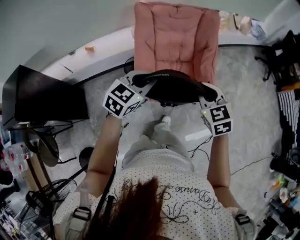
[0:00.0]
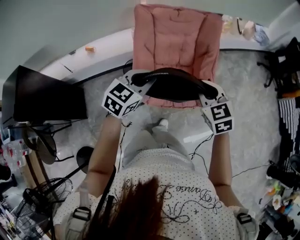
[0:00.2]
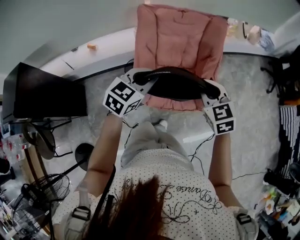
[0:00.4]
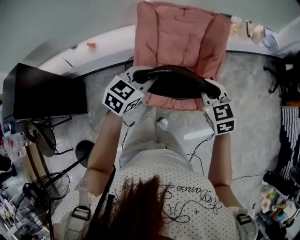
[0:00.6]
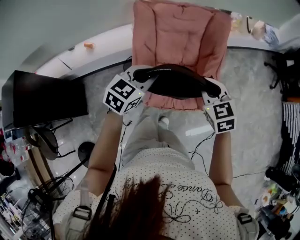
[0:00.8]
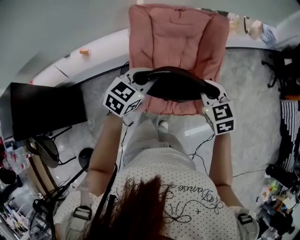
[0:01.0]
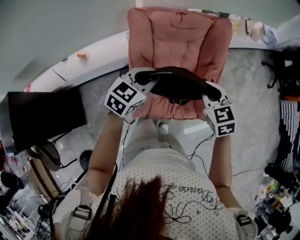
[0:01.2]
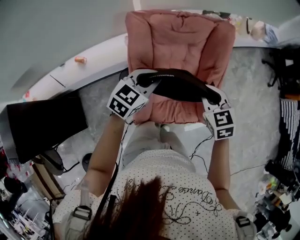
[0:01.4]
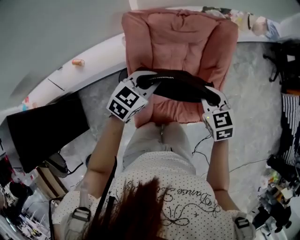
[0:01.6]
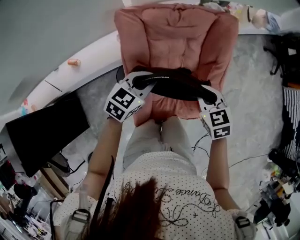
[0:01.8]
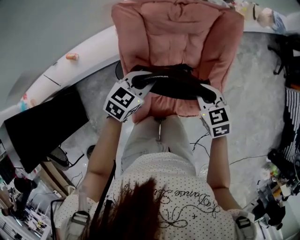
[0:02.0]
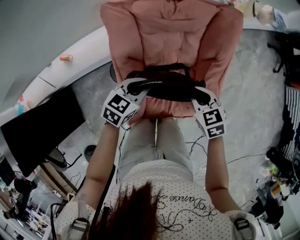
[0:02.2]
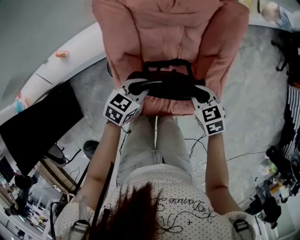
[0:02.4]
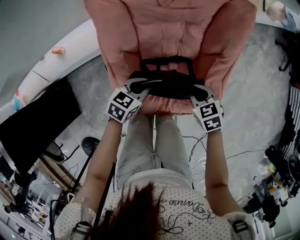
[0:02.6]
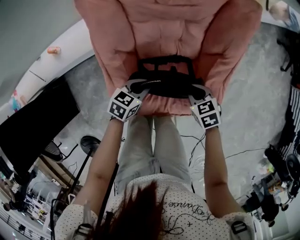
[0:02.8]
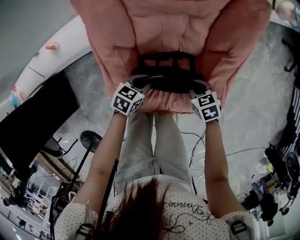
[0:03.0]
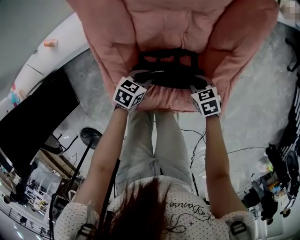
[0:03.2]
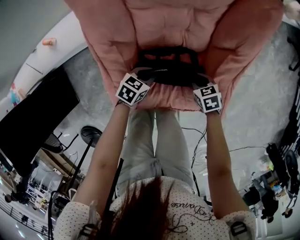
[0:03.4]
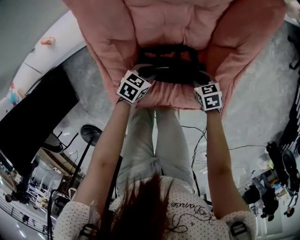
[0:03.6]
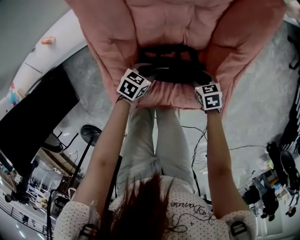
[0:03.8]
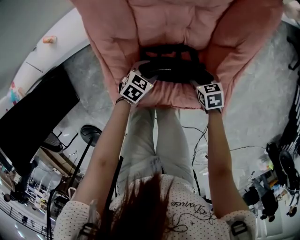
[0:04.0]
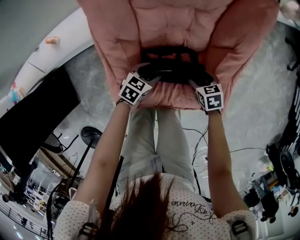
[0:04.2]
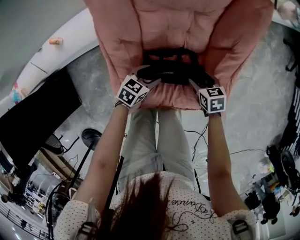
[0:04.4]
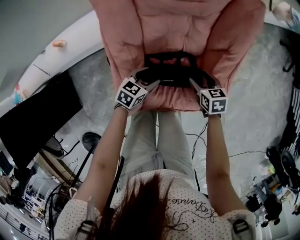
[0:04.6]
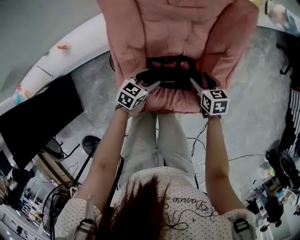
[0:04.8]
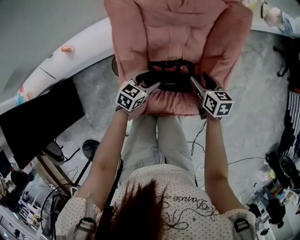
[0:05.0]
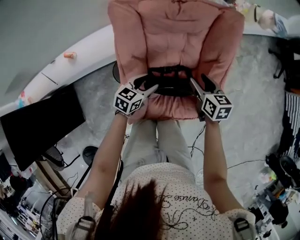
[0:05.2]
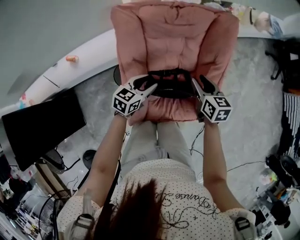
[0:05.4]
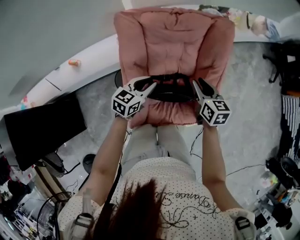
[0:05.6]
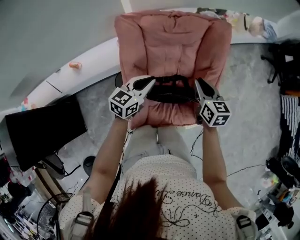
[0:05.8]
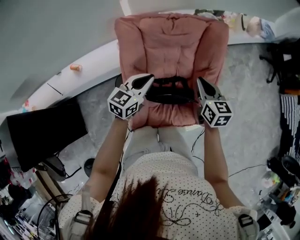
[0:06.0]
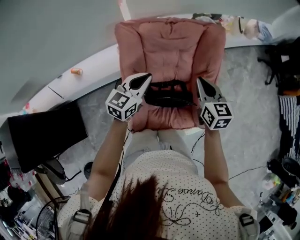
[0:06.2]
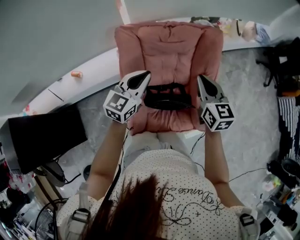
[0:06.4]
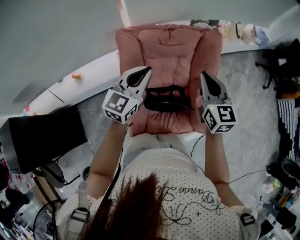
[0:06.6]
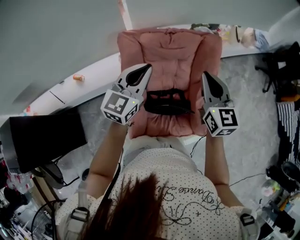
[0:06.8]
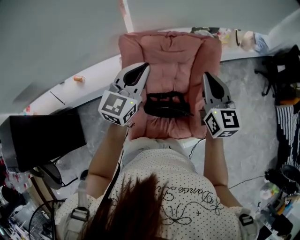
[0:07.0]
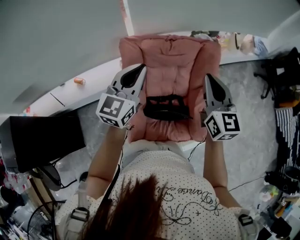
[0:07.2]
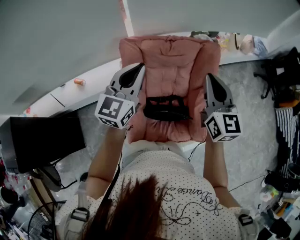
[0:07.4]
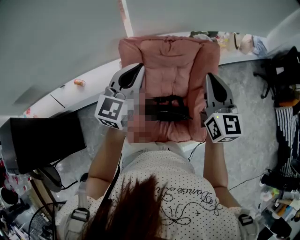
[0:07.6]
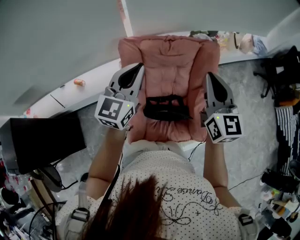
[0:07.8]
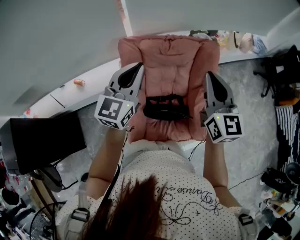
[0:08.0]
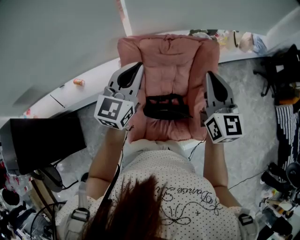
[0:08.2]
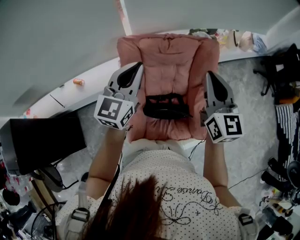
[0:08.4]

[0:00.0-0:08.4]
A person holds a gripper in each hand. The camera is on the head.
0:00.0 to 0:01.4: The grippers both shift forward by about 25 cm.
0:01.4 to 0:02.8: The two grippers go some 30 cm downward. The left gripper changes its angle by some 30 degrees; the right gripper rotates approximately 30 degrees.
0:02.8 to 0:04.2: Both grippers move downward, some 5 cm. The right gripper opens up. The left gripper opens its fingers.
0:04.2 to 0:05.6: Both grippers travel together upward, approximately 25 cm. The left gripper rotates approximately 30 degrees, and closes its fingers. The right gripper points its fingers roughly 30 degrees further upward, and closes its fingers.
0:05.6 to 0:07.0: The grippers both shift upward by about 25 cm. The left gripper turns by some 30 degrees. The right gripper changes its angle by some 30 degrees, and closes its fingers.
0:07.0 to 0:08.4: There are only small adjustments of the grippers.

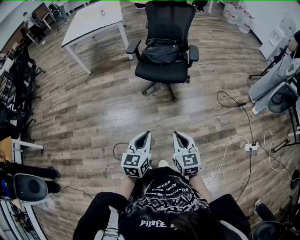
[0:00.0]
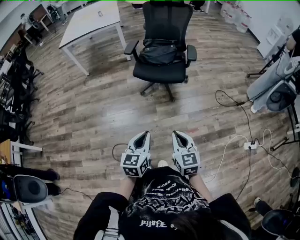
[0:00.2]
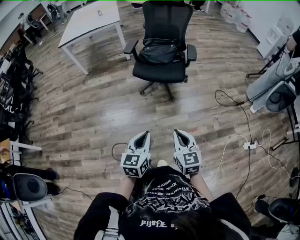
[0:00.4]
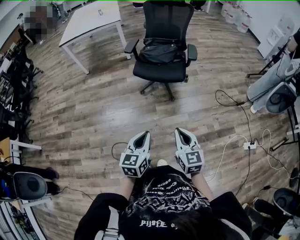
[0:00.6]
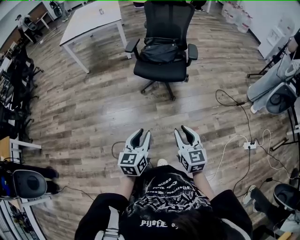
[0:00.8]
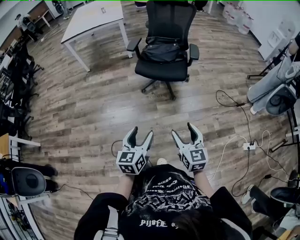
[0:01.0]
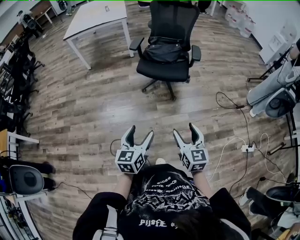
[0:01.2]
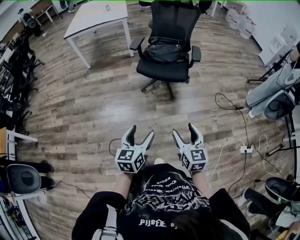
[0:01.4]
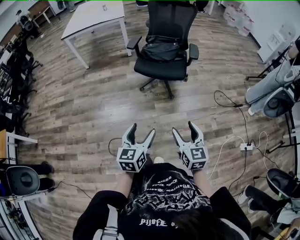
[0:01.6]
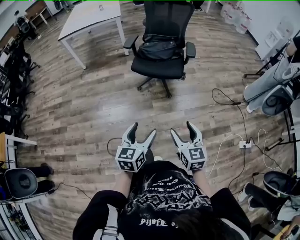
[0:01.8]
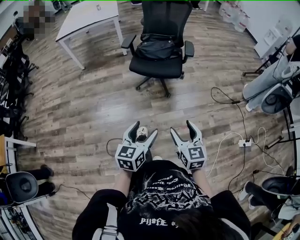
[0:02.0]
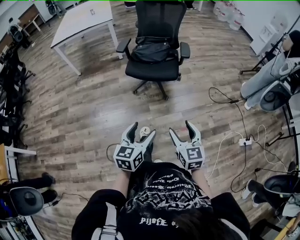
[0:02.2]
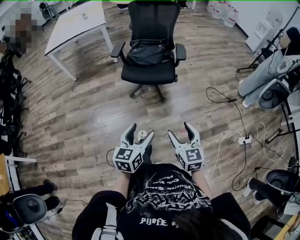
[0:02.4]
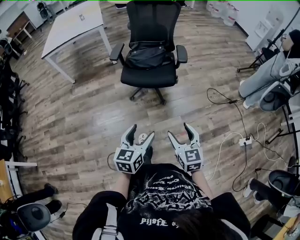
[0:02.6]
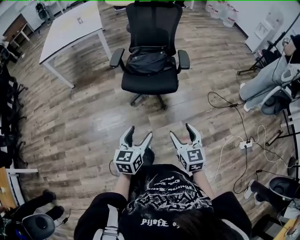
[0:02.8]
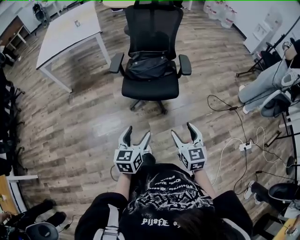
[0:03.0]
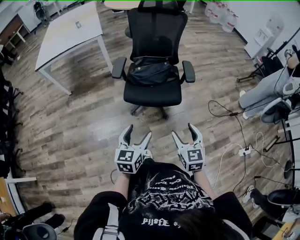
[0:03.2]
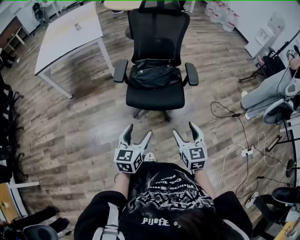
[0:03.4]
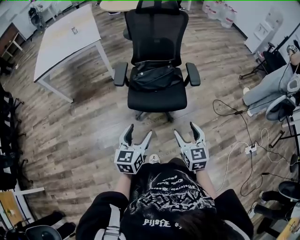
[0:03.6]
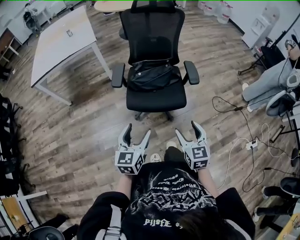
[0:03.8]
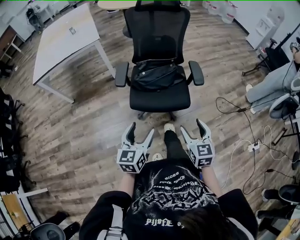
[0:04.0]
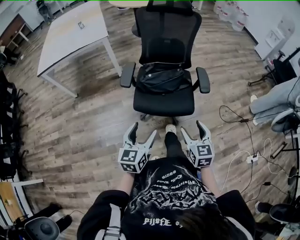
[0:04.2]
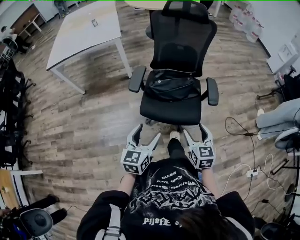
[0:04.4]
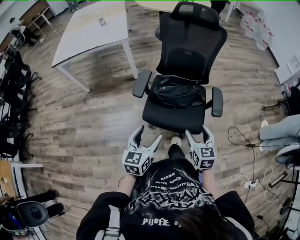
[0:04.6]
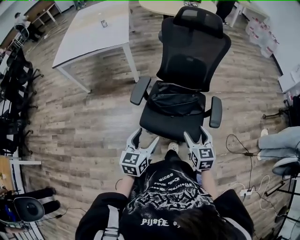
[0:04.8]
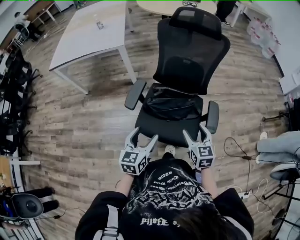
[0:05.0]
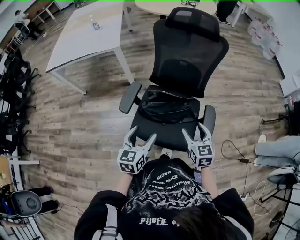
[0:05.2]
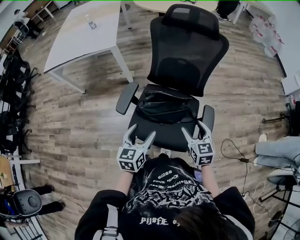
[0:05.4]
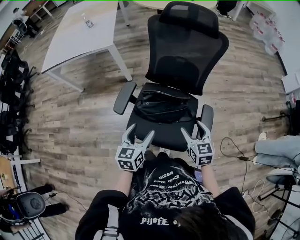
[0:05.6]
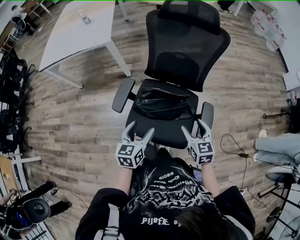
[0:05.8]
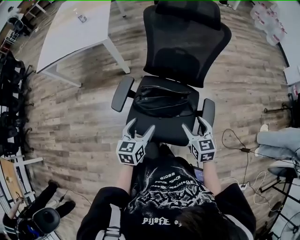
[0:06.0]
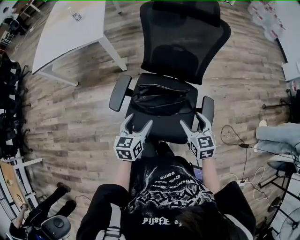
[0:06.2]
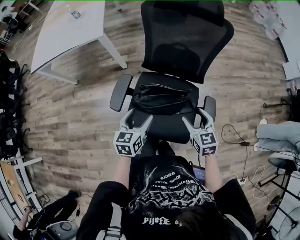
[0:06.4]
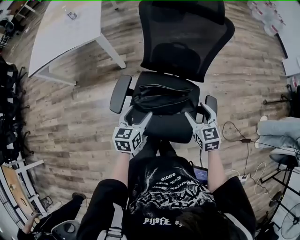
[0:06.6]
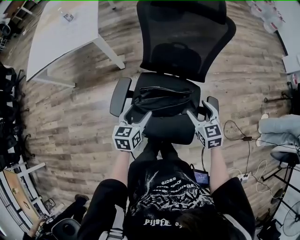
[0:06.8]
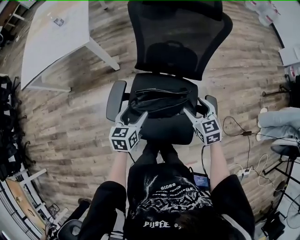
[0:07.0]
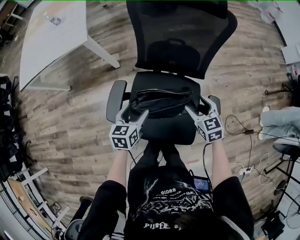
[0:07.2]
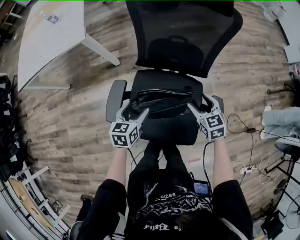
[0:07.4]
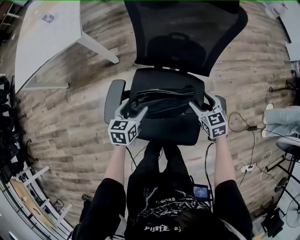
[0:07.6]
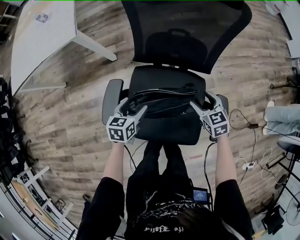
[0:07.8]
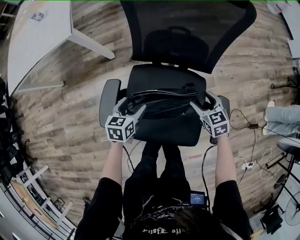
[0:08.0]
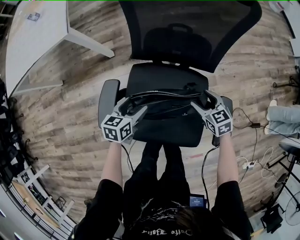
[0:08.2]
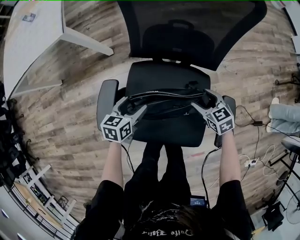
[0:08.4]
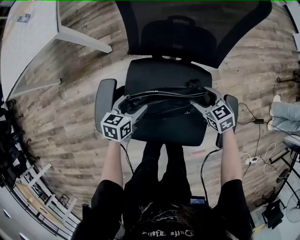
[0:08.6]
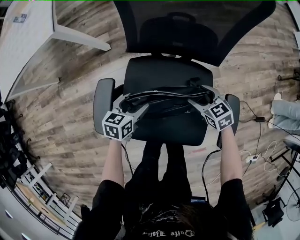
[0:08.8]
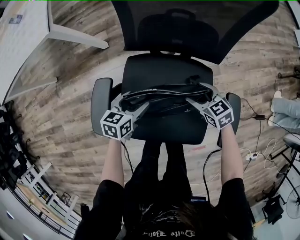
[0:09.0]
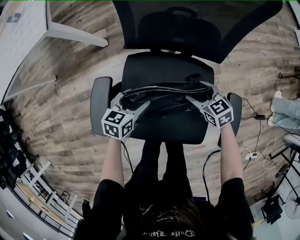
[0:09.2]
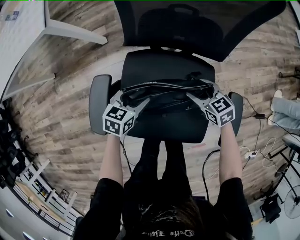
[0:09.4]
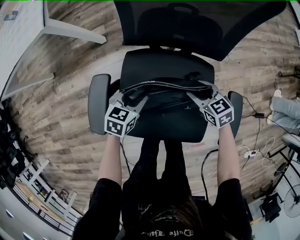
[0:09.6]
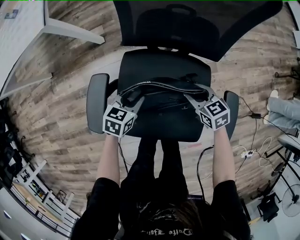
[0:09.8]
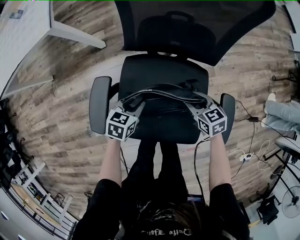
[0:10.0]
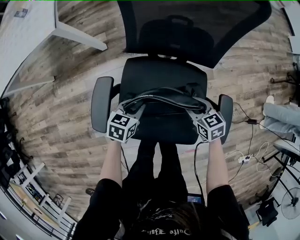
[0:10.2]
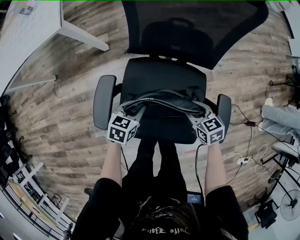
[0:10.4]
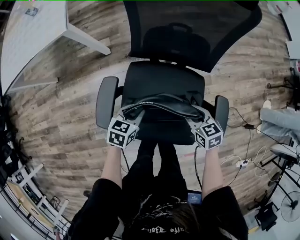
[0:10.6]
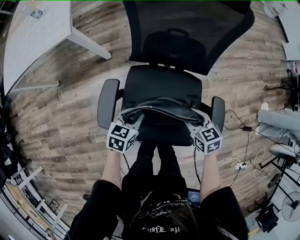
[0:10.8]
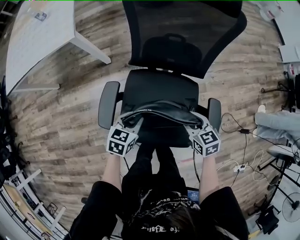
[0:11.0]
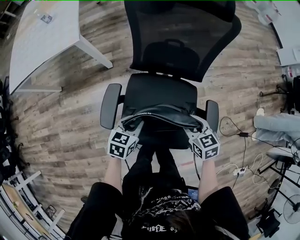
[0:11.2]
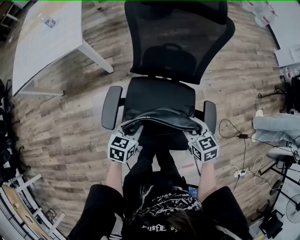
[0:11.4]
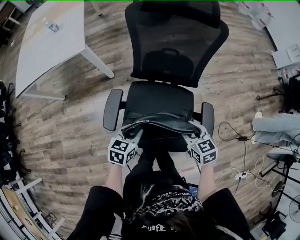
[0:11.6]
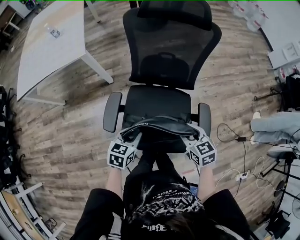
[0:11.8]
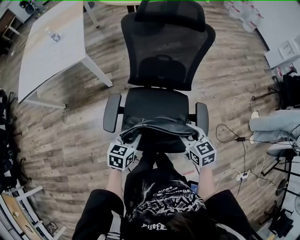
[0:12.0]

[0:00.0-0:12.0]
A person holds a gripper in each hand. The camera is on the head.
0:00.0 to 0:01.6: The right gripper opens. Meanwhile the left gripper opens.
0:01.6 to 0:03.0: The two grippers go some 25 cm forward.
0:03.0 to 0:04.4: The two grippers go some 25 cm forward.
0:04.4 to 0:06.0: Both grippers move forward and to the right, some 30 cm.
0:06.0 to 0:07.6: The grippers both shift forward and downward by approximately 25 cm.
0:07.6 to 0:09.0: Both grippers move downward, roughly 15 cm.
0:09.0 to 0:10.4: The right gripper heads upward and backward, covering approximately 10 cm, and closes up. The left gripper moves roughly 5 cm, and closes.
0:10.4 to 0:12.0: The grippers both shift upward and backward by approximately 25 cm.

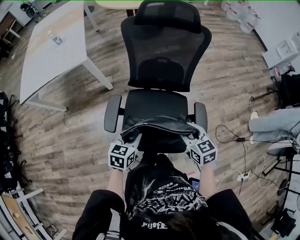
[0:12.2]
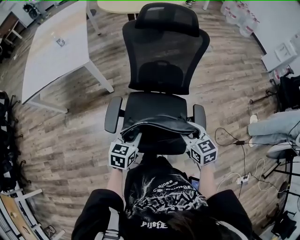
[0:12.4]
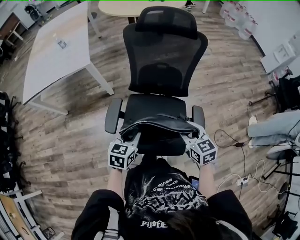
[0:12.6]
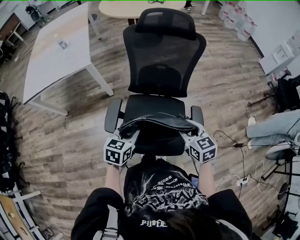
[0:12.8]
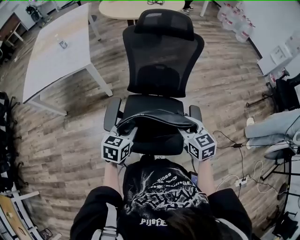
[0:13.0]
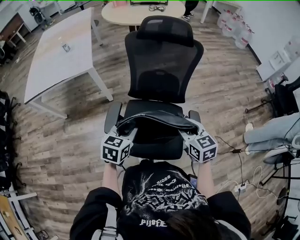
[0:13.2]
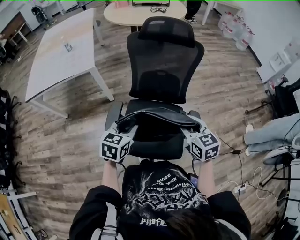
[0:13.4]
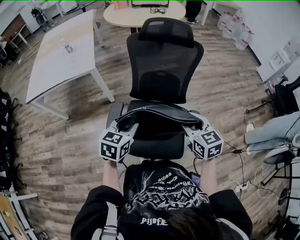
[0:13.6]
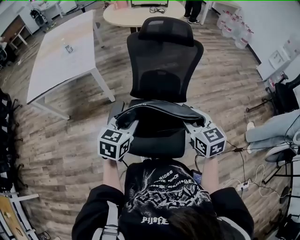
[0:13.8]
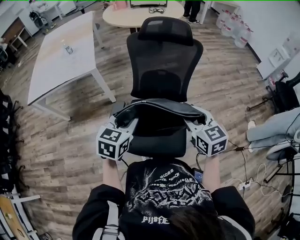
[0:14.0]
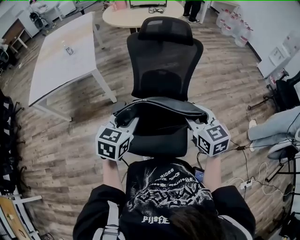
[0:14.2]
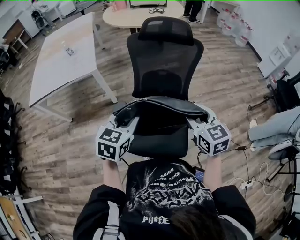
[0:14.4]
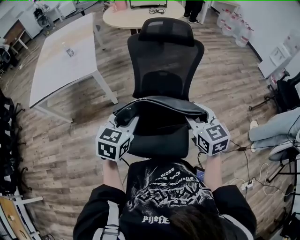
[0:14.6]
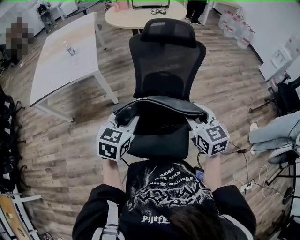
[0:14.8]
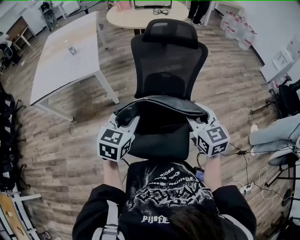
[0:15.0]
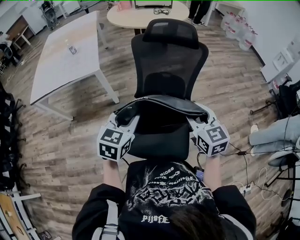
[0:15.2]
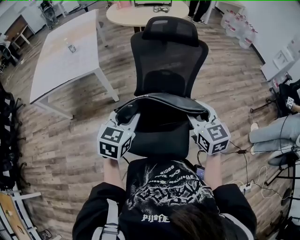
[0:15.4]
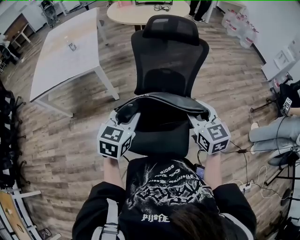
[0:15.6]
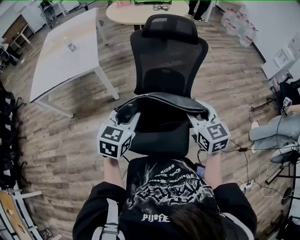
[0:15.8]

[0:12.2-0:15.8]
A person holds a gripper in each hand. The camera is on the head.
0:12.2 to 0:14.0: The two grippers go approximately 15 cm upward.
0:14.0 to 0:15.8: There are only small adjustments of the grippers.
